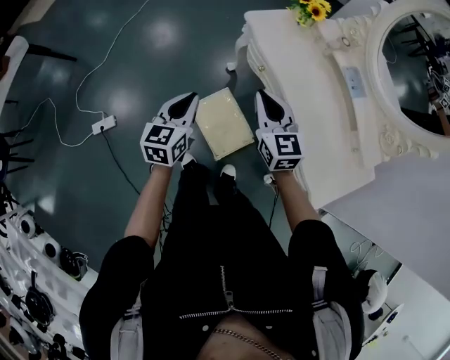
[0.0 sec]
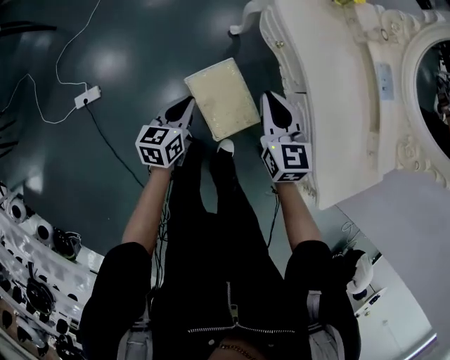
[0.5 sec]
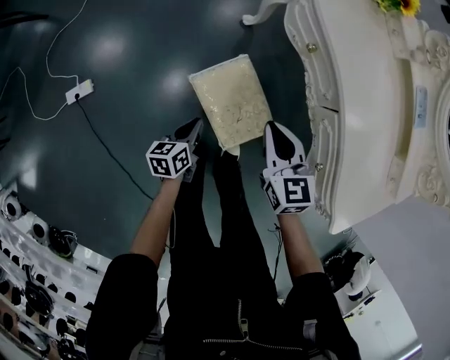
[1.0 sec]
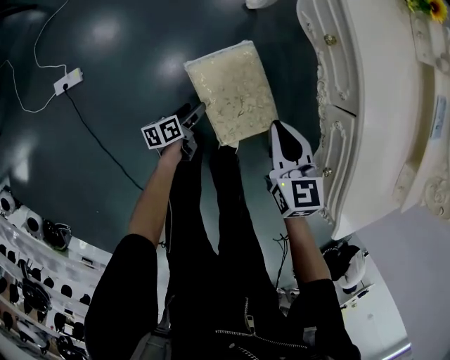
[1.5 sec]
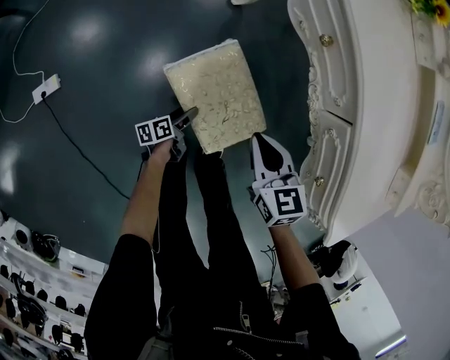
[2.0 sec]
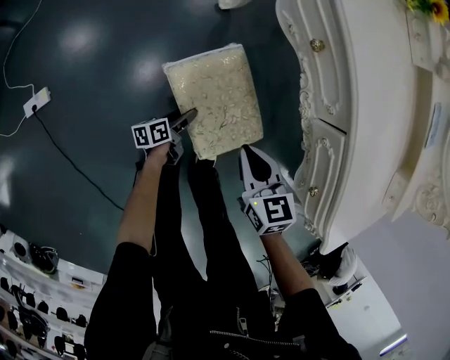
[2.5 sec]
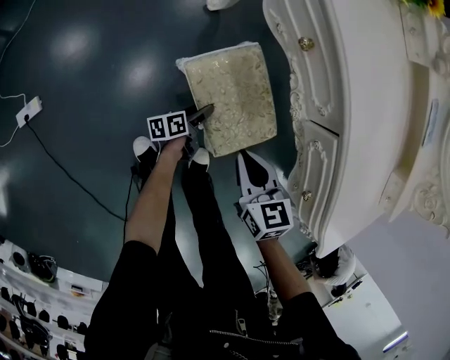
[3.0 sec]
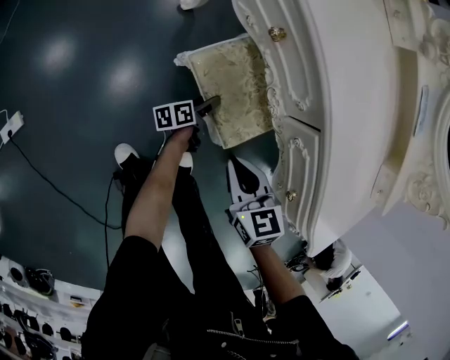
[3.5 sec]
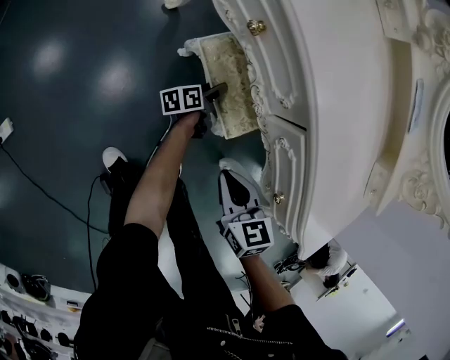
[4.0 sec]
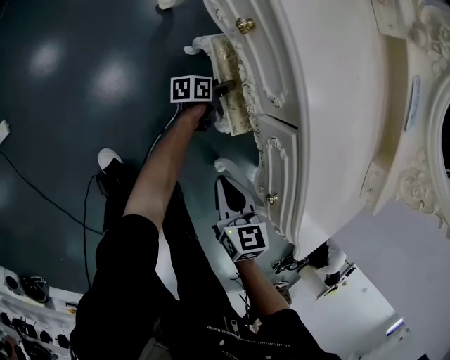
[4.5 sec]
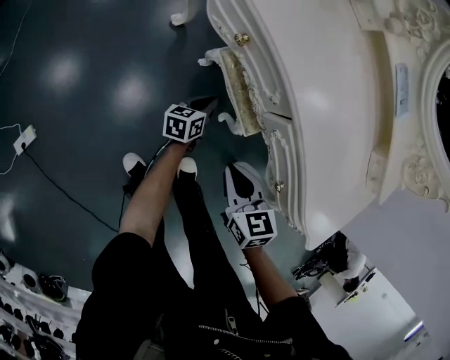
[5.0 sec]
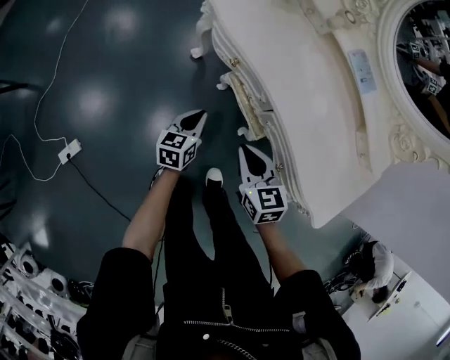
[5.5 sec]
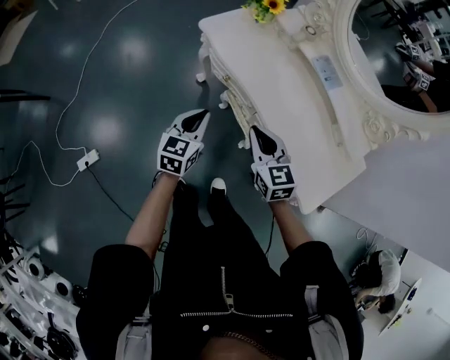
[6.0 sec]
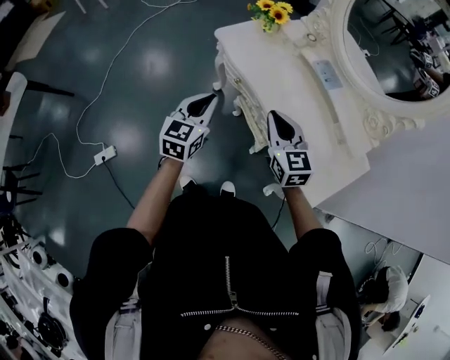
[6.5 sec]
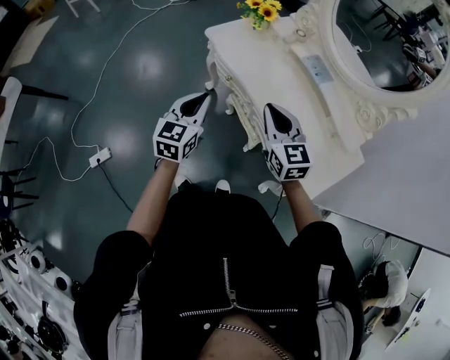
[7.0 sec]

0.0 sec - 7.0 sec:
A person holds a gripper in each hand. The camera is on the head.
0.0 sec - 2.0 sec: The left gripper shifts some 60 cm downward, rolls counterclockwise, seen from behind, by roughly 60 degrees, and opens. The right gripper heads downward, covering some 35 cm, and turns by approximately 30 degrees.
2.0 sec - 3.5 sec: The left gripper travels to the right and forward by about 25 cm, while the right gripper is displaced to the right by roughly 5 cm.
3.5 sec - 5.0 sec: The left gripper is displaced upward by some 10 cm, moves about 10 cm forward and comes back, rotates roughly 40 degrees, and closes.
5.0 sec - 7.0 sec: The grippers both shift upward by approximately 50 cm. The right gripper tilts its fingers approximately 30 degrees upward. The left gripper rotates about 50 degrees.

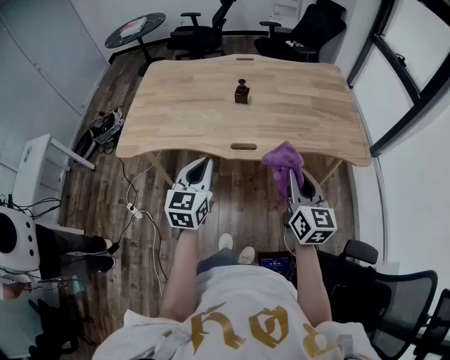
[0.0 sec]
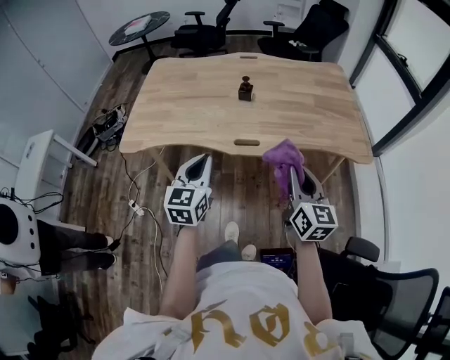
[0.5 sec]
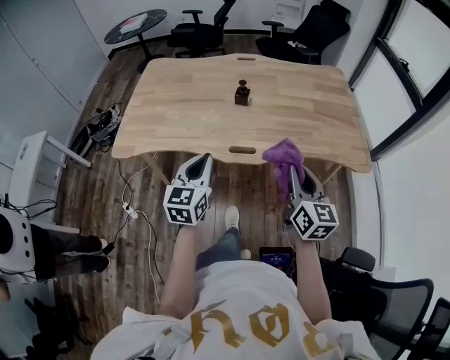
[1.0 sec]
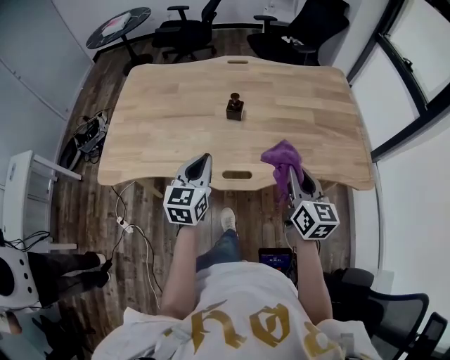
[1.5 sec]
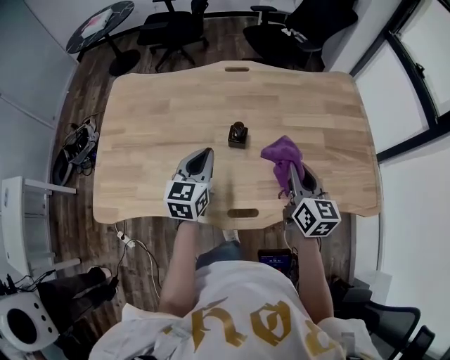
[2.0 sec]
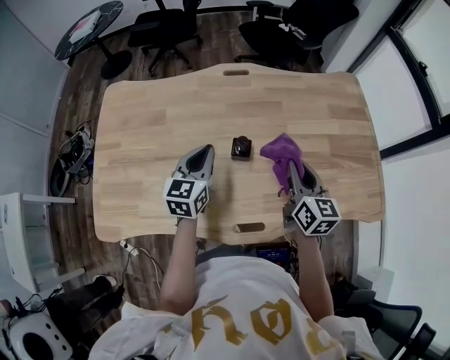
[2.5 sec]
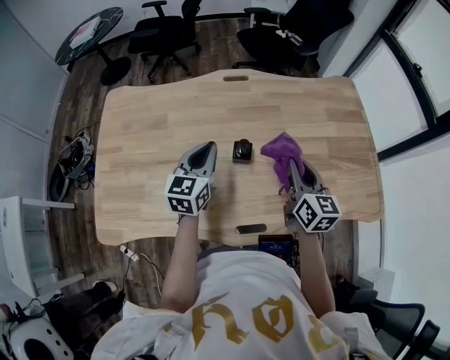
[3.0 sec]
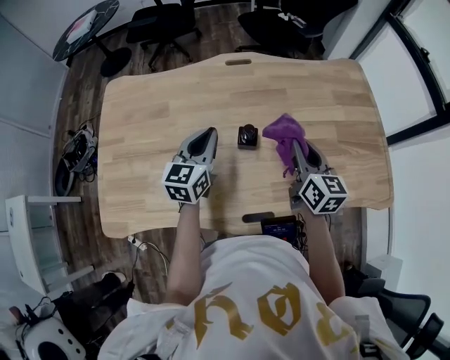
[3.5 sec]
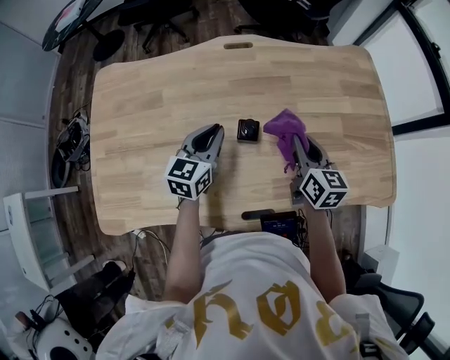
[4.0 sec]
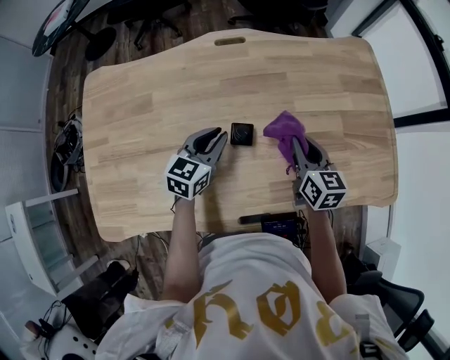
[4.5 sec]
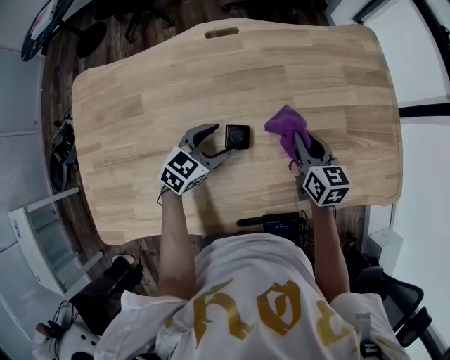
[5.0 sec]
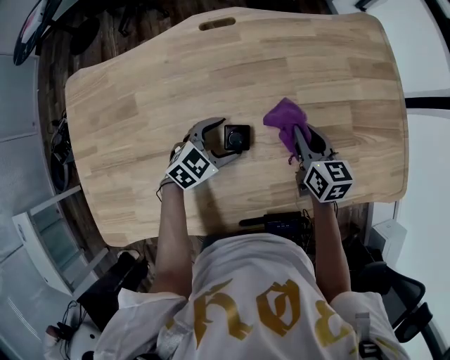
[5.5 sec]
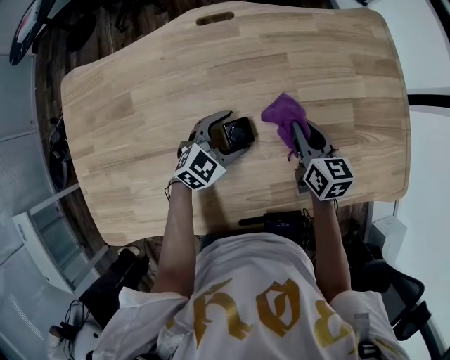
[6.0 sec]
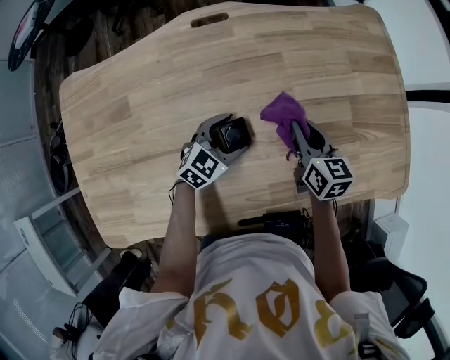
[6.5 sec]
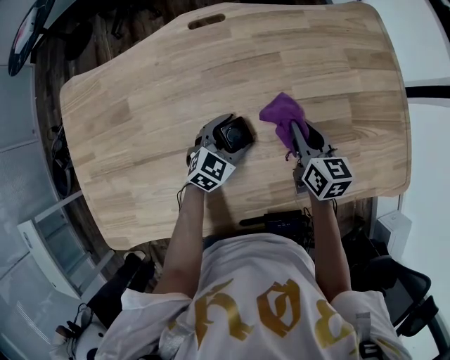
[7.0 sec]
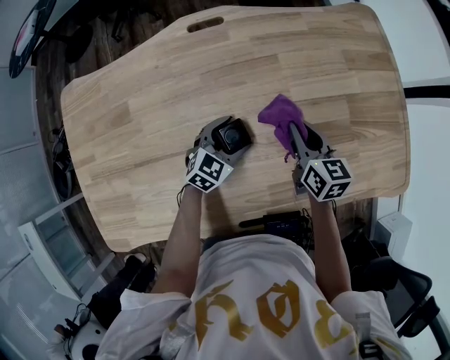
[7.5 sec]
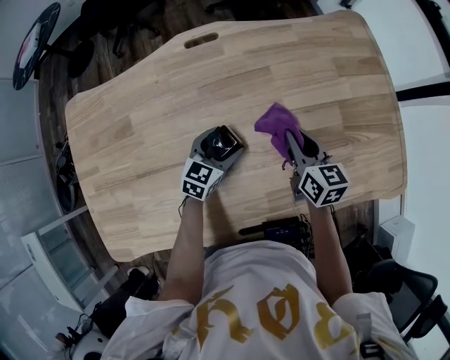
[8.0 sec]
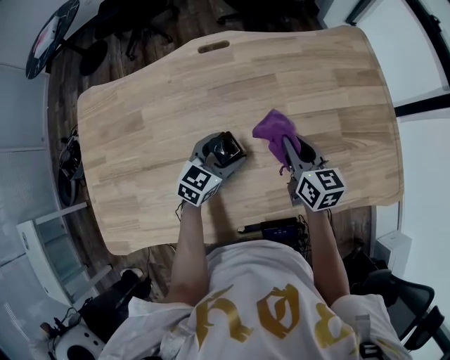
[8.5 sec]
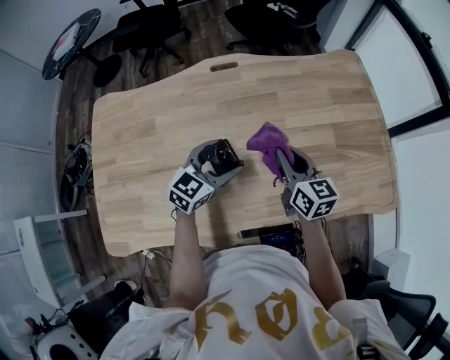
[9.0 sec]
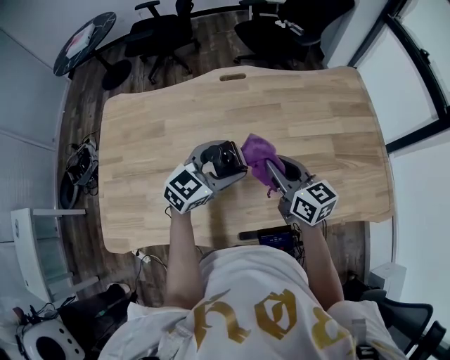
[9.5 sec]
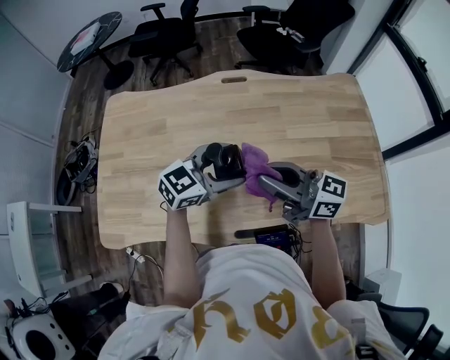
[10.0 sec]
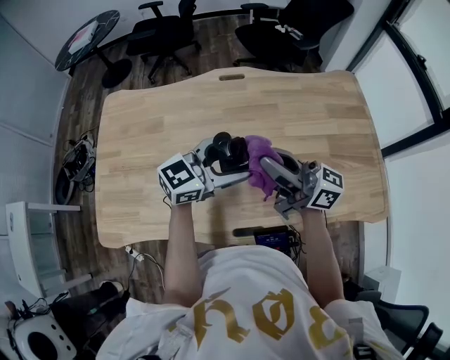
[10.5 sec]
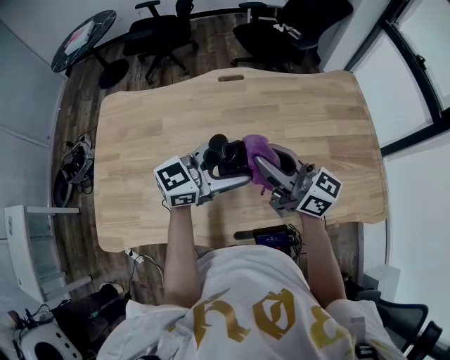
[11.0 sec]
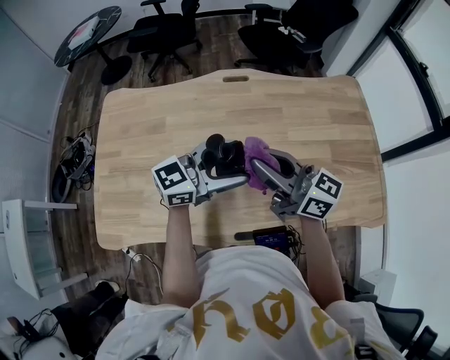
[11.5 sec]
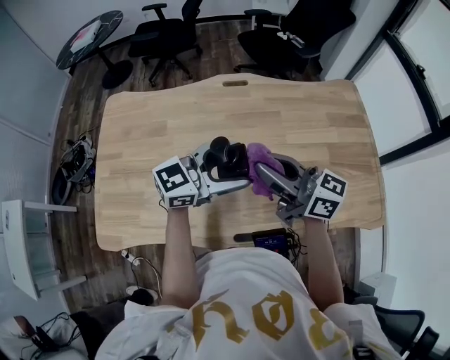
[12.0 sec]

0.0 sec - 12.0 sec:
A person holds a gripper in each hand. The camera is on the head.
0.0 sec - 2.0 sec: Both grippers travel together forward, about 35 cm.
2.0 sec - 4.0 sec: The grippers both shift forward and downward by about 10 cm.
4.0 sec - 6.0 sec: The right gripper travels downward and forward by roughly 10 cm; the left gripper travels downward and to the right by some 15 cm, turns by some 40 degrees, and opens.
6.0 sec - 8.0 sec: The left gripper changes its angle by about 20 degrees.
8.0 sec - 10.0 sec: Both grippers move upward, roughly 20 cm. The left gripper turns by about 20 degrees. The right gripper points its fingers some 30 degrees further upward.
10.0 sec - 12.0 sec: The left gripper is displaced upward by approximately 5 cm.

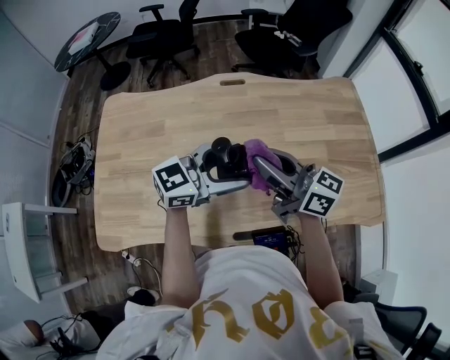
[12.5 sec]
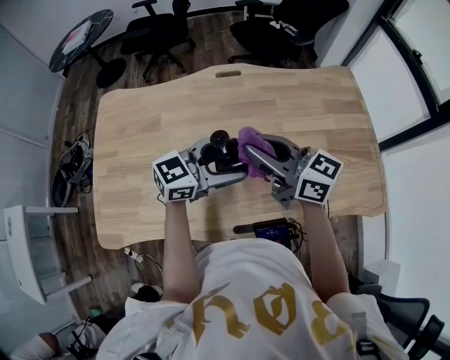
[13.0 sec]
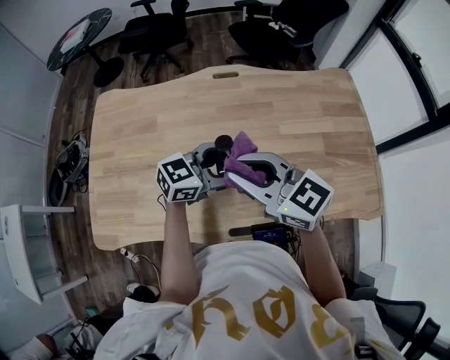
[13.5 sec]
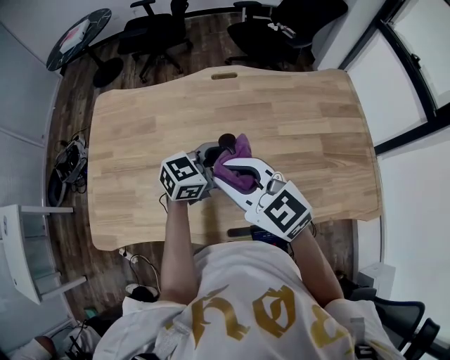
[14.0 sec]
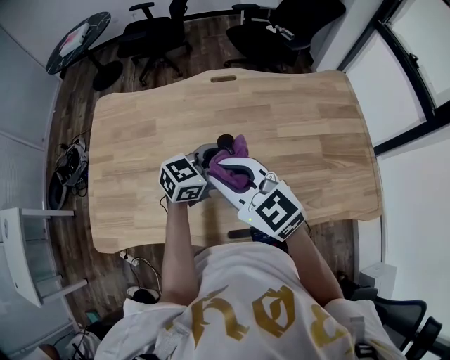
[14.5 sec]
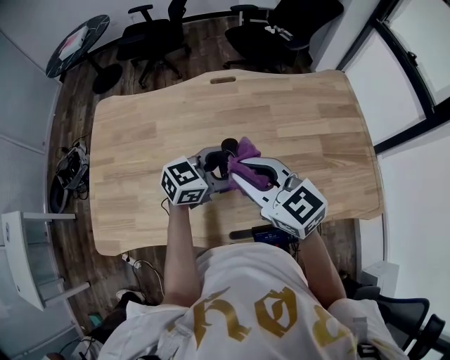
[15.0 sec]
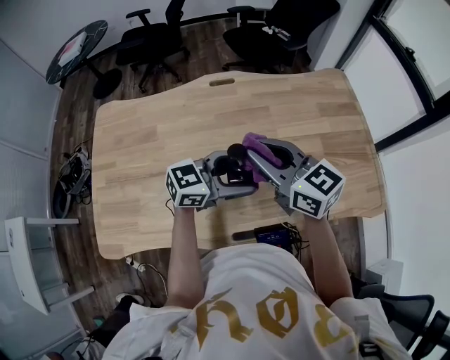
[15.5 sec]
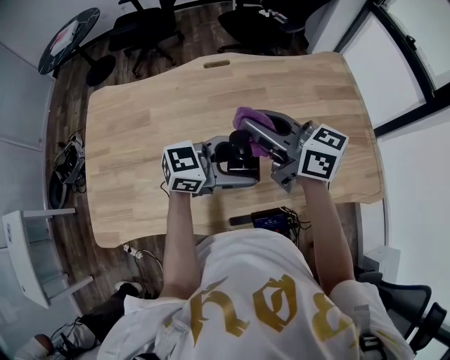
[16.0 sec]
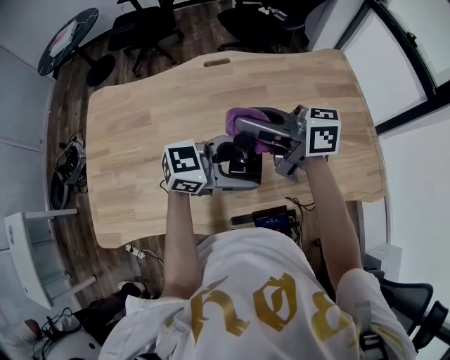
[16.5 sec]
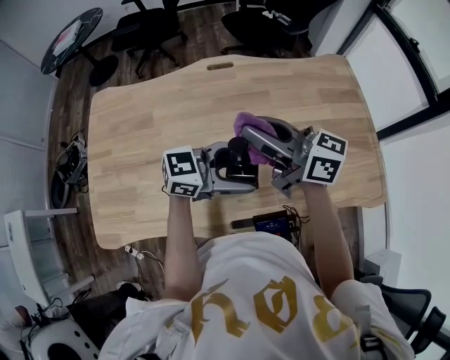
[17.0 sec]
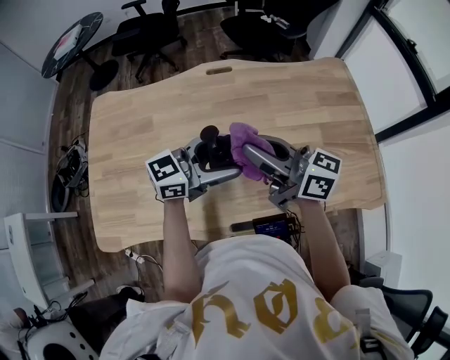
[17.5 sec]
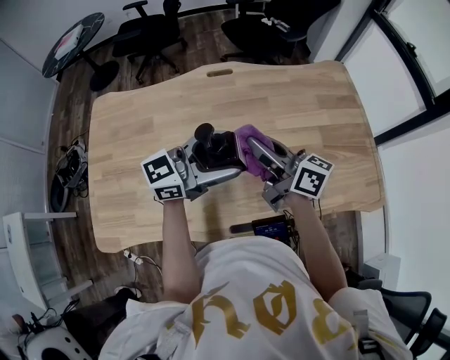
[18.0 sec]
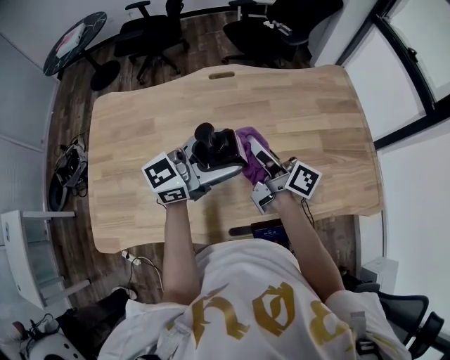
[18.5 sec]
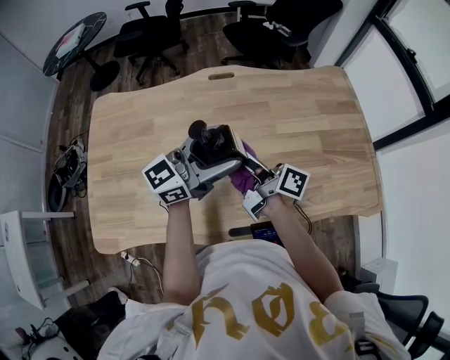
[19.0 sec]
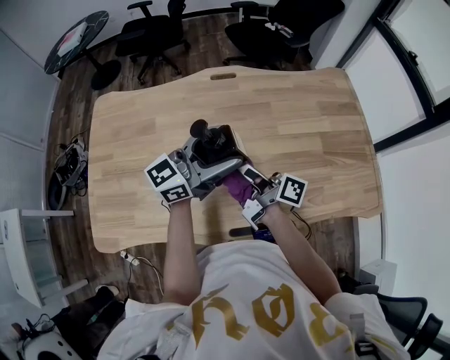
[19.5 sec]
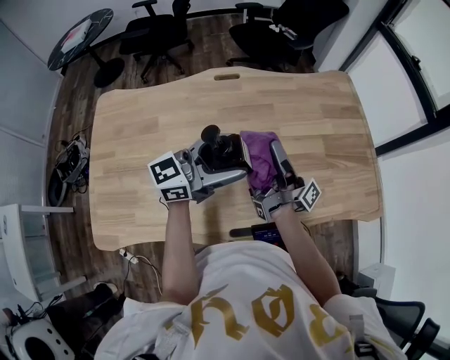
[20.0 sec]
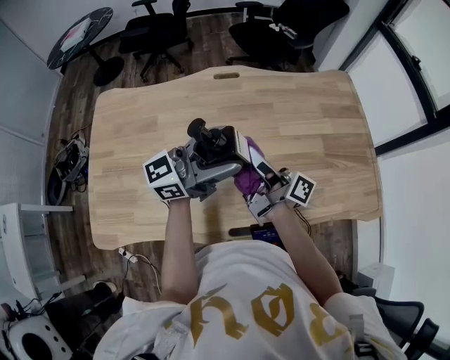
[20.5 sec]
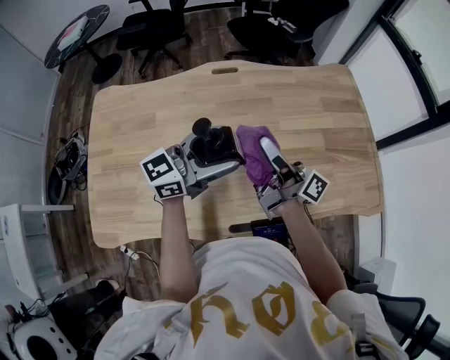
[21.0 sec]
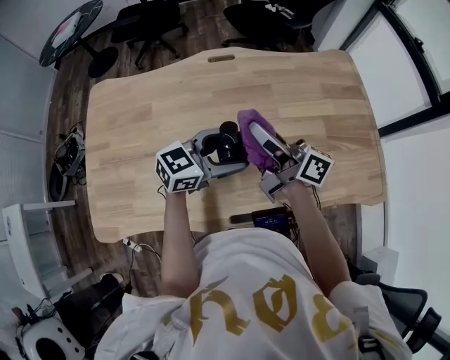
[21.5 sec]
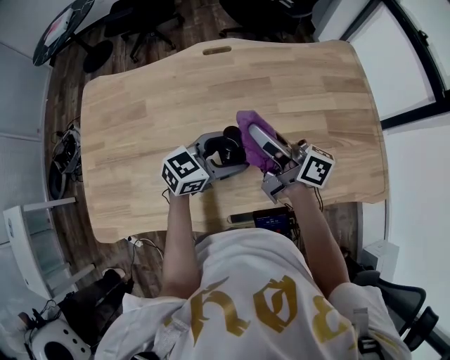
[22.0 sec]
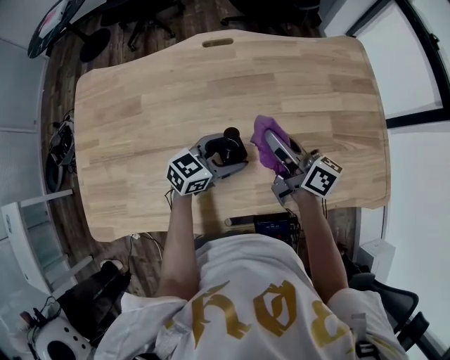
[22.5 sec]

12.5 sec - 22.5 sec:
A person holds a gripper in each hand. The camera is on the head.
12.5 sec - 14.5 sec: The left gripper heads downward, covering some 5 cm; the right gripper moves about 10 cm, and rotates some 40 degrees.
14.5 sec - 16.5 sec: The right gripper ends up approximately 10 cm from where it was, and rotates around the line of its fingers by about 40 degrees, clockwise from behind. Meanwhile the left gripper changes place by approximately 10 cm, and turns by roughly 20 degrees.
16.5 sec - 18.5 sec: The left gripper shifts by about 10 cm, and rotates about 30 degrees. Meanwhile the right gripper is displaced downward by roughly 10 cm, and swivels approximately 40 degrees.
18.5 sec - 20.5 sec: The right gripper turns by about 20 degrees.
20.5 sec - 22.5 sec: The left gripper heads downward, covering some 25 cm, and points its fingers roughly 40 degrees further downward. The right gripper travels downward, forward and to the right by roughly 10 cm, and swivels about 40 degrees.
